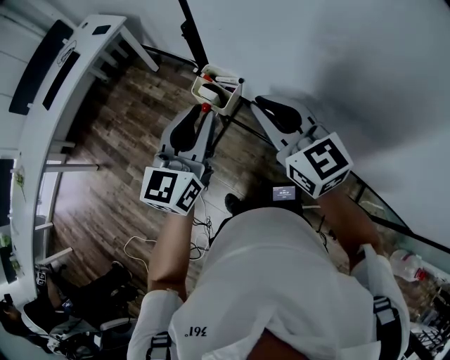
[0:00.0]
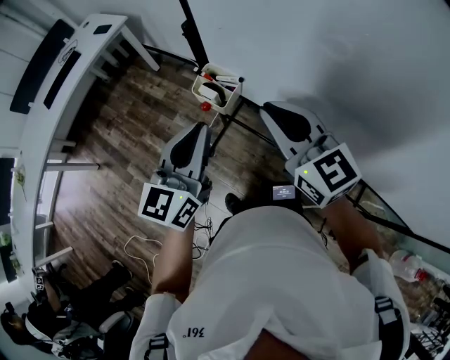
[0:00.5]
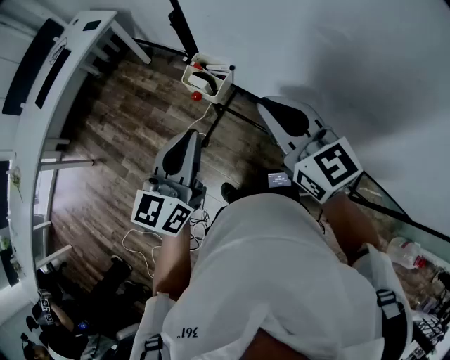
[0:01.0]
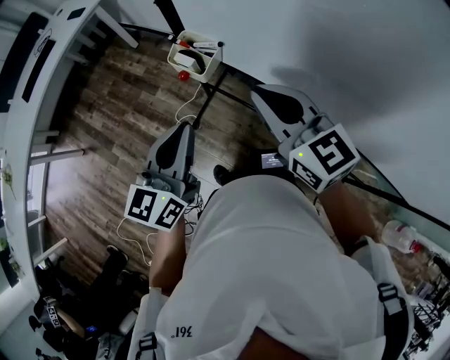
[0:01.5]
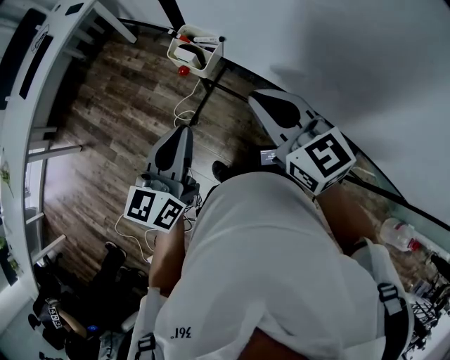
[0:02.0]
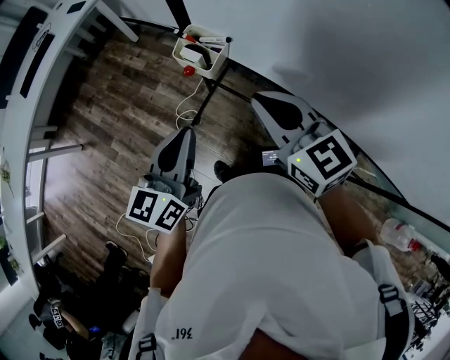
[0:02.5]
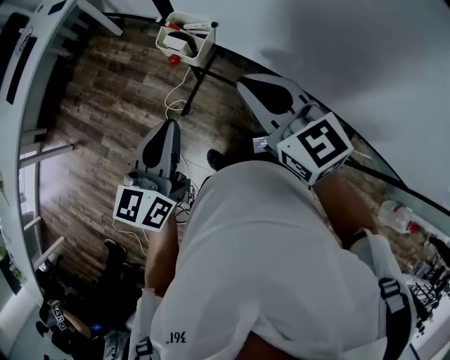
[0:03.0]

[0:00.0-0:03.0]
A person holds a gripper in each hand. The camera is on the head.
0:00.0 to 0:01.5: The right gripper ends up about 5 cm from where it was. Meanwhile the left gripper goes about 10 cm backward.
0:01.5 to 0:03.0: The grippers stay close to where they were, moving slightly.

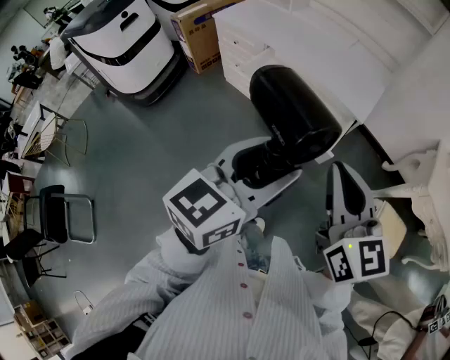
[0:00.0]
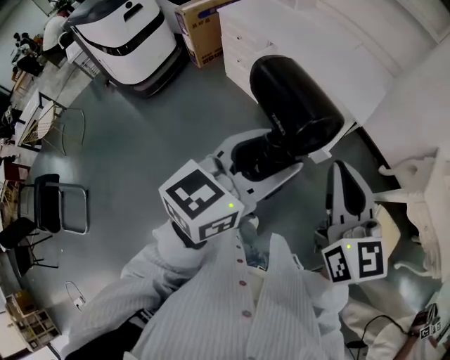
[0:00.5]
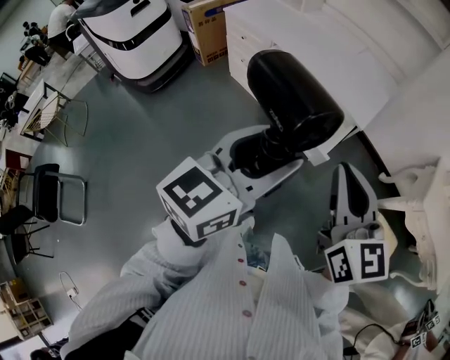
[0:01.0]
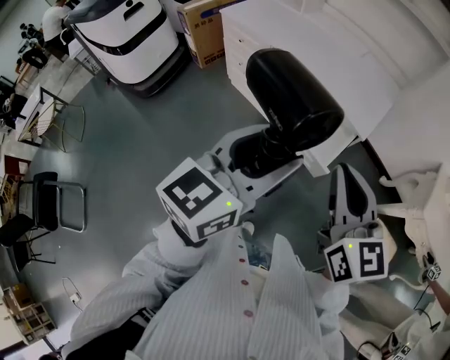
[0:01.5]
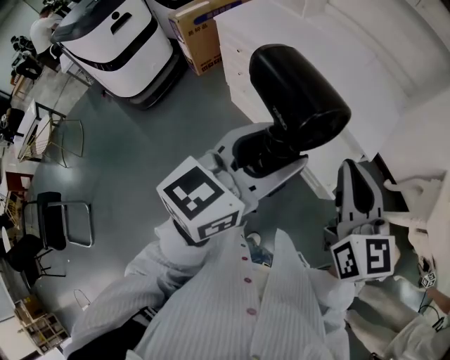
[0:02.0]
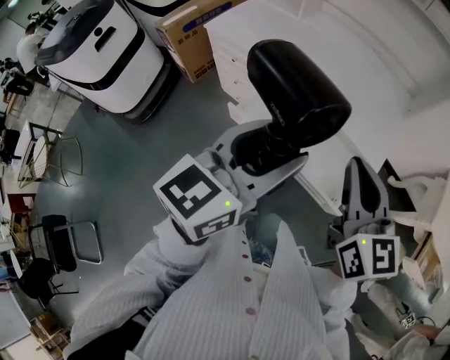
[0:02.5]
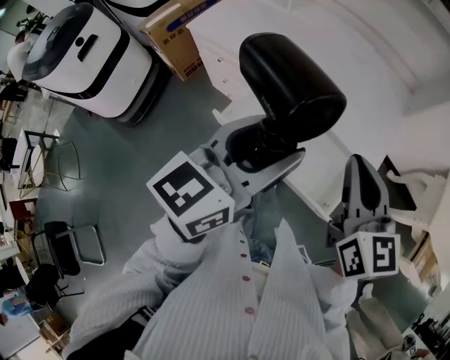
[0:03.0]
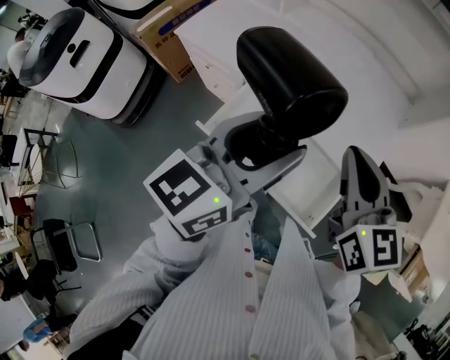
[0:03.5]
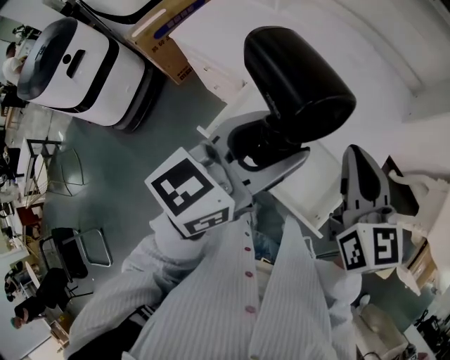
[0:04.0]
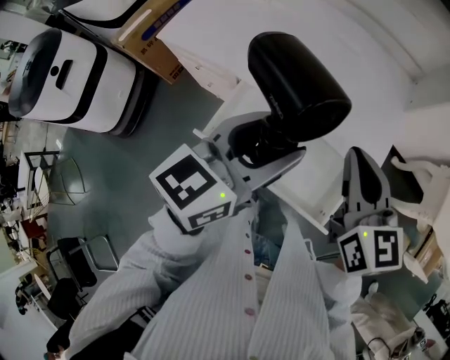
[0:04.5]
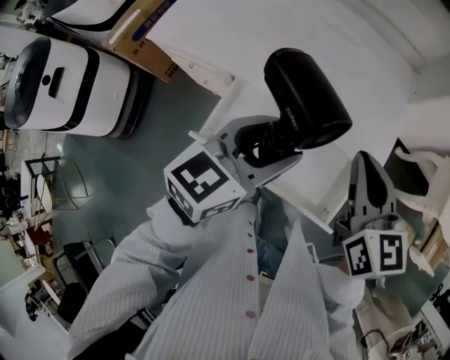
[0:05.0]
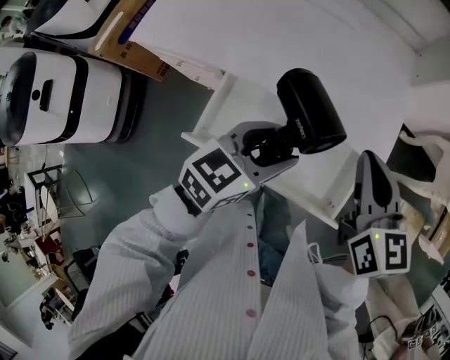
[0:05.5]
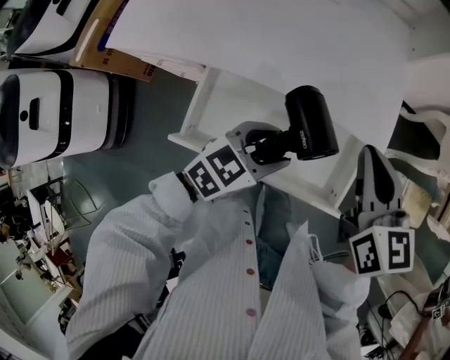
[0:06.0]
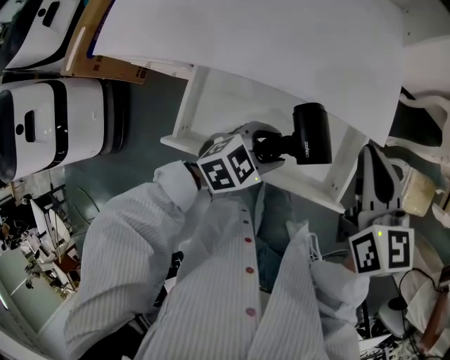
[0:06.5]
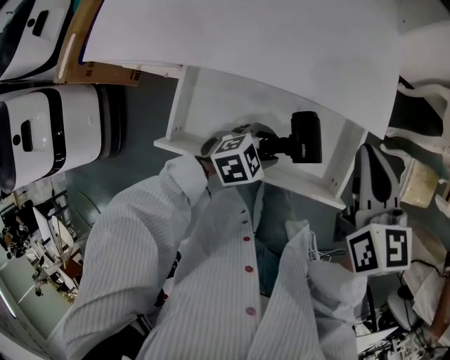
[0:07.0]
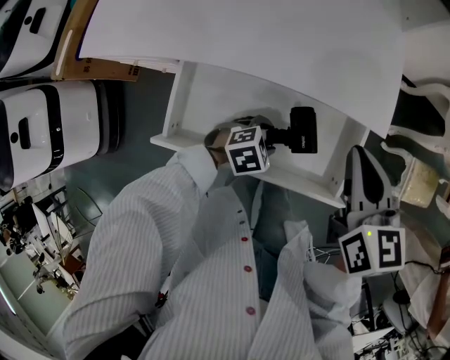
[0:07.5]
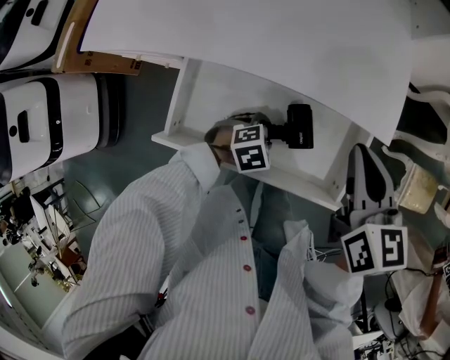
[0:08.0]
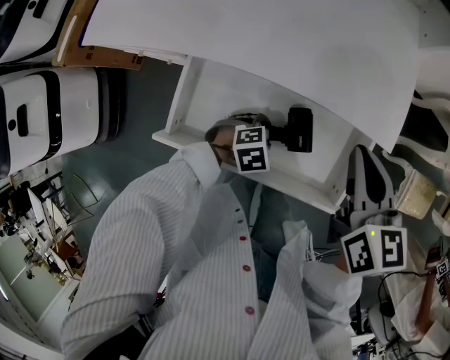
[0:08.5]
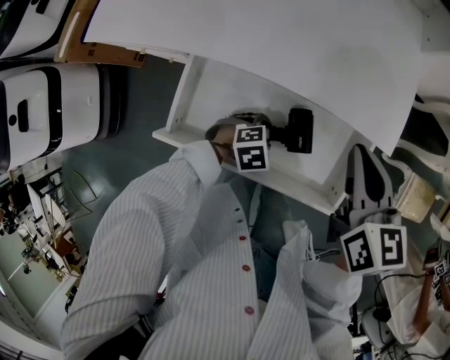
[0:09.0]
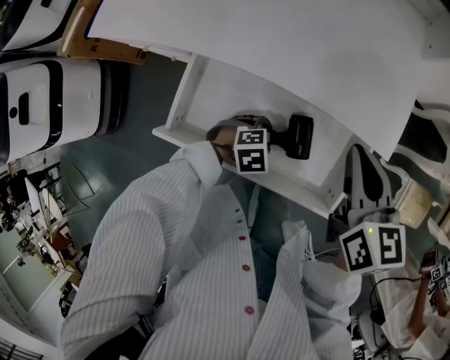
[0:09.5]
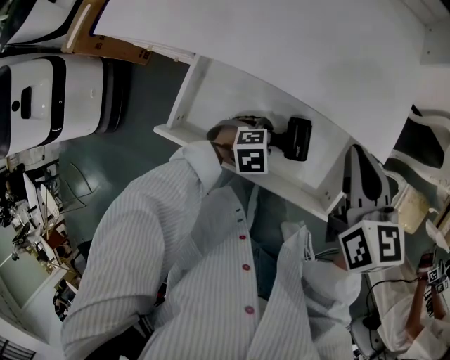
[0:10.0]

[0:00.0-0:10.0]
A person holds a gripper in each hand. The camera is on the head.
0:00.0 to 0:02.0: Both grippers travel together forward, approximately 20 cm.
0:02.0 to 0:04.0: Both grippers move forward, about 25 cm.
0:04.0 to 0:06.0: The left gripper heads downward, covering roughly 25 cm, and changes its angle by some 50 degrees. The right gripper is displaced downward by about 10 cm, and changes its angle by some 20 degrees.
0:06.0 to 0:08.0: The left gripper shifts some 20 cm downward, and tips its fingers downward by about 40 degrees. Meanwhile the right gripper moves downward, roughly 5 cm.
0:08.0 to 0:10.0: There are only small adjustments of the grippers.

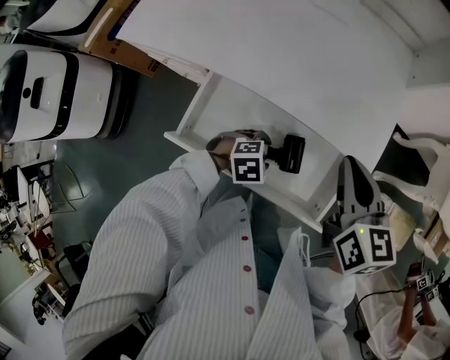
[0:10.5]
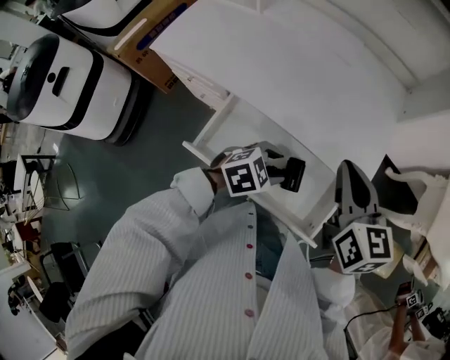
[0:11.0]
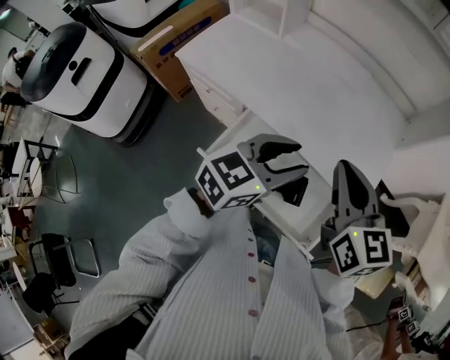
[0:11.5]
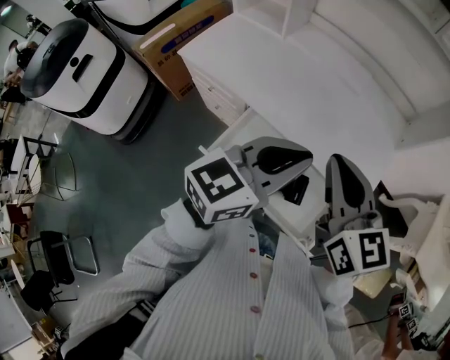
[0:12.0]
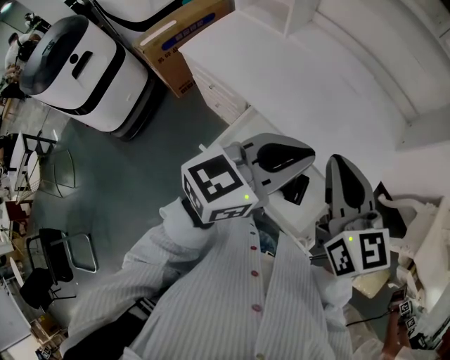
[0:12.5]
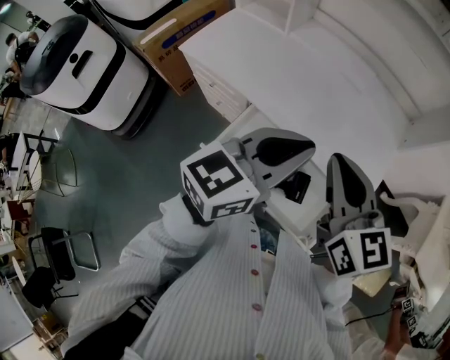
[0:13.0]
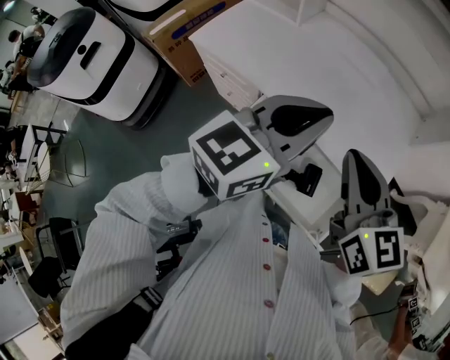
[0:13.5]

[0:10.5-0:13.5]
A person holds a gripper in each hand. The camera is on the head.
0:10.5 to 0:12.0: The left gripper heads upward, covering about 40 cm, tips its fingers upward by roughly 60 degrees, and closes its fingers. The right gripper goes about 15 cm upward, and swivels about 30 degrees.
0:12.0 to 0:13.5: The left gripper ends up roughly 5 cm from where it was.

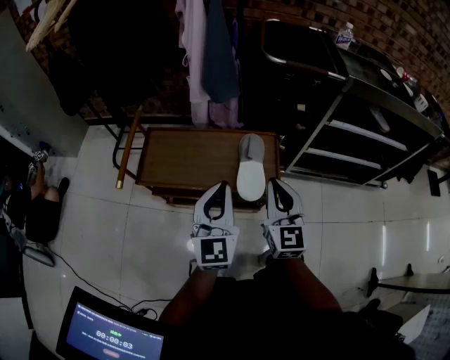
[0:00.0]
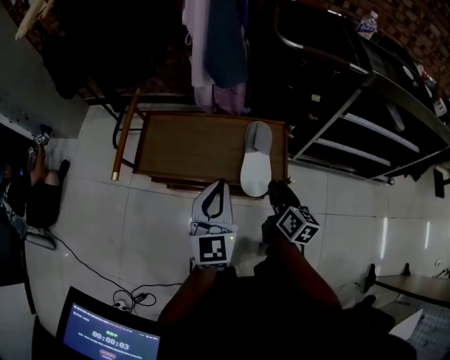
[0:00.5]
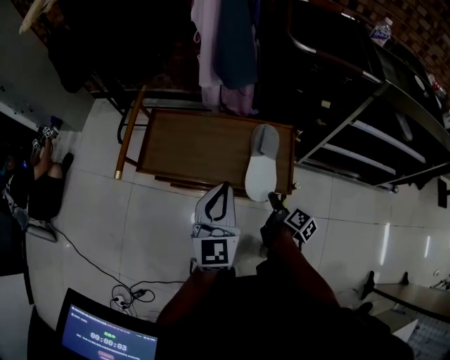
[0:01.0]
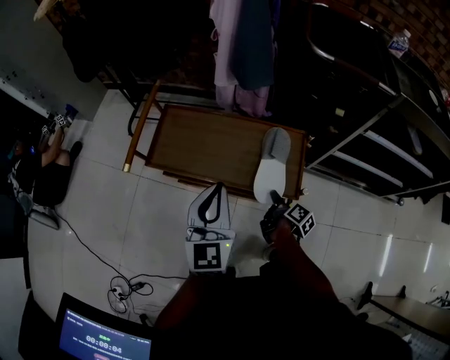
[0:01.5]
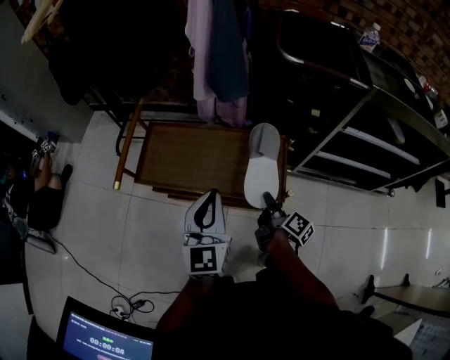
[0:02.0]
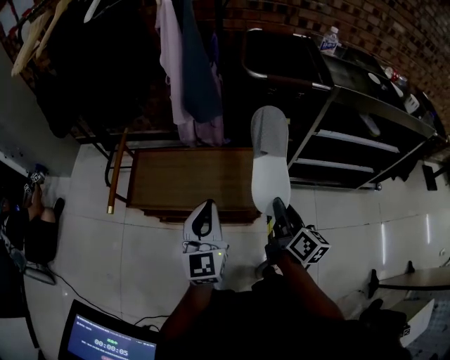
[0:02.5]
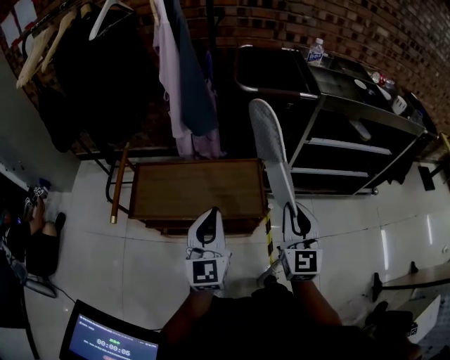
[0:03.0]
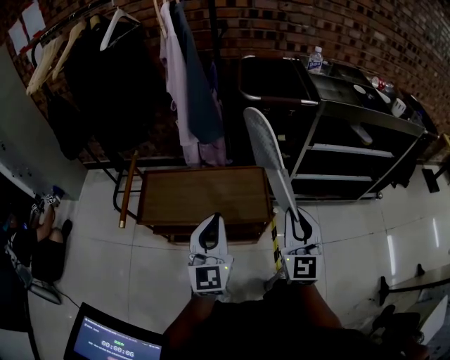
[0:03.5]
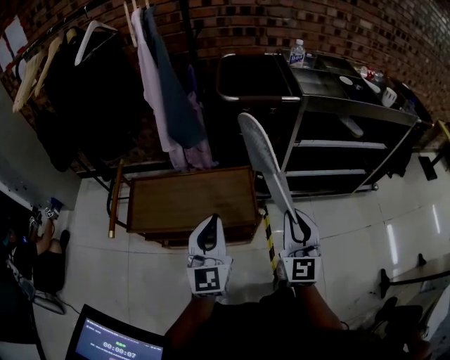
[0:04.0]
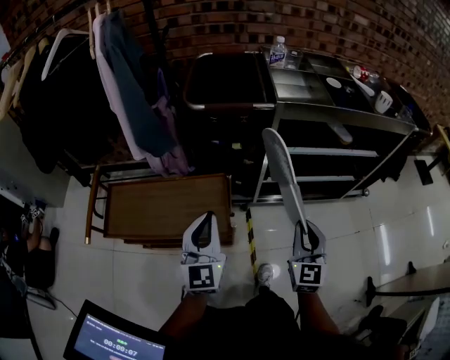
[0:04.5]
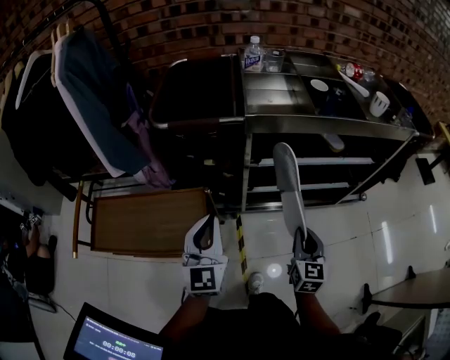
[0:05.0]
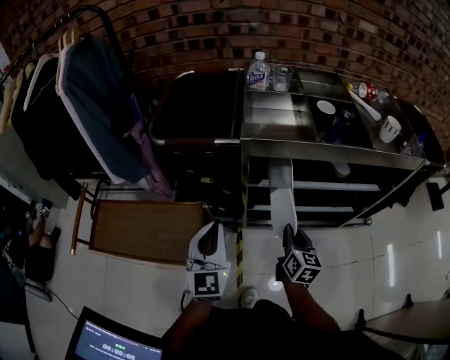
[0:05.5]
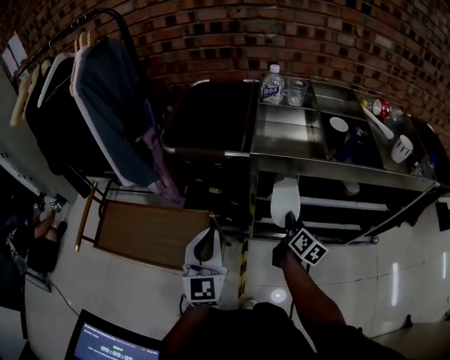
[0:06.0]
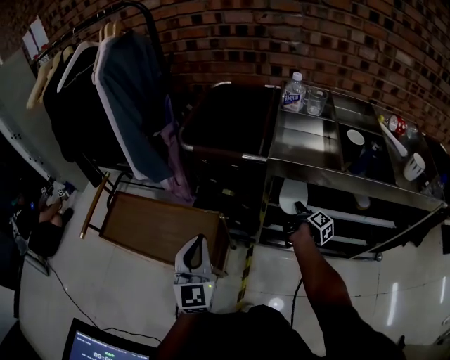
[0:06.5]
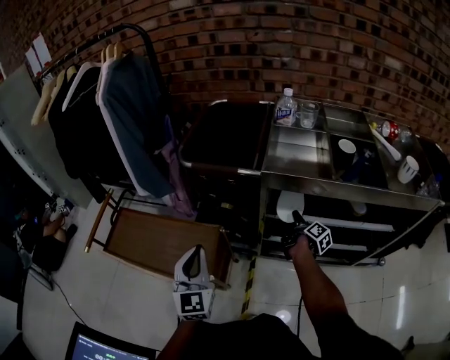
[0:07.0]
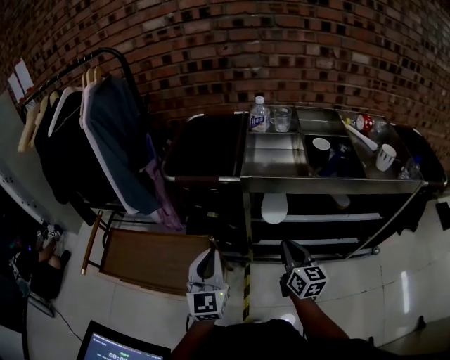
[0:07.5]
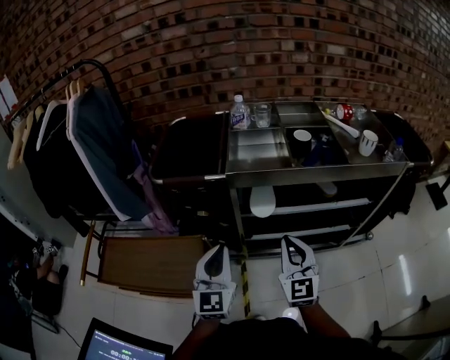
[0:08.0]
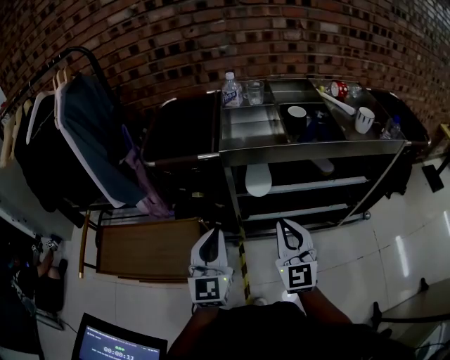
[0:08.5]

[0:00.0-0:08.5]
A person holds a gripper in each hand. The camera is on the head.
0:00.0 to 0:02.0: The left gripper shifts by approximately 5 cm. The right gripper travels downward by approximately 20 cm, twists approximately 80 degrees clockwise, seen from behind, and opens, then closes once more.
0:02.0 to 0:04.0: The right gripper moves upward and to the right, roughly 25 cm, and twists approximately 90 degrees counterclockwise, seen from behind, while the left gripper travels to the right and upward by roughly 10 cm.
0:04.0 to 0:06.5: The left gripper heads to the right and forward, covering roughly 25 cm. The right gripper heads forward, to the right and downward, covering approximately 50 cm, and twists some 100 degrees clockwise, seen from behind.
0:06.5 to 0:08.5: The left gripper heads to the right, covering approximately 10 cm, and swivels some 20 degrees. The right gripper travels upward and backward by some 35 cm, rotates around the line of its fingers by approximately 100 degrees, counterclockwise from behind, and opens, then closes again.

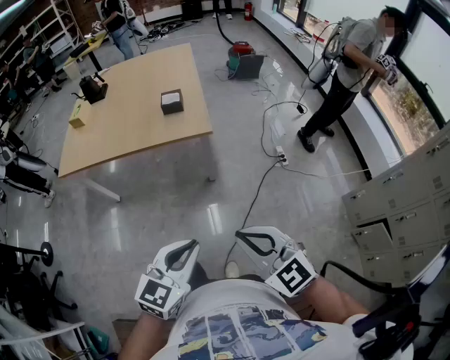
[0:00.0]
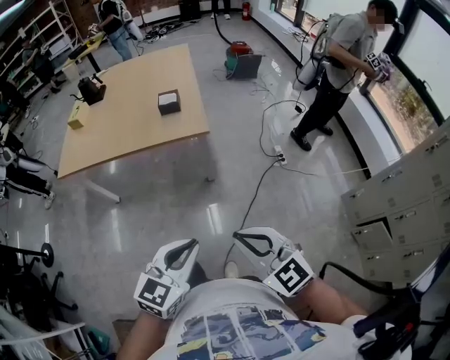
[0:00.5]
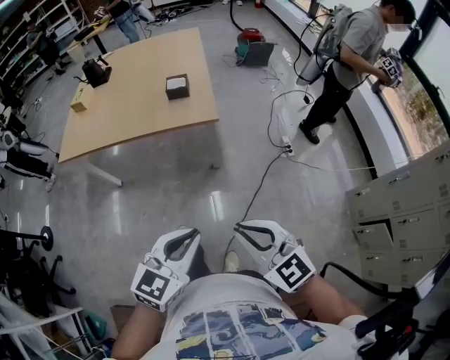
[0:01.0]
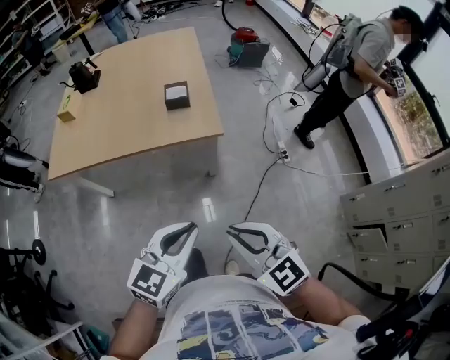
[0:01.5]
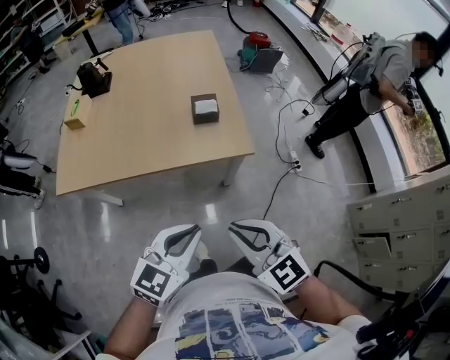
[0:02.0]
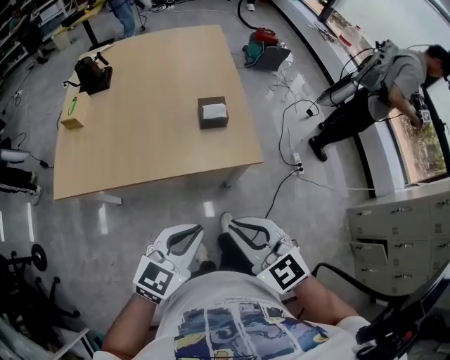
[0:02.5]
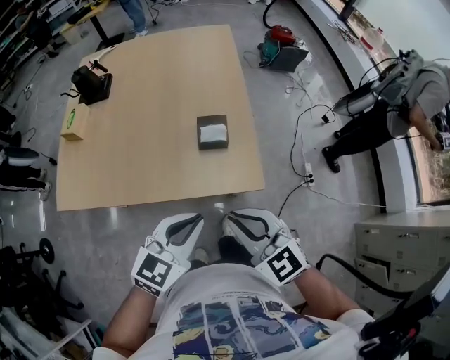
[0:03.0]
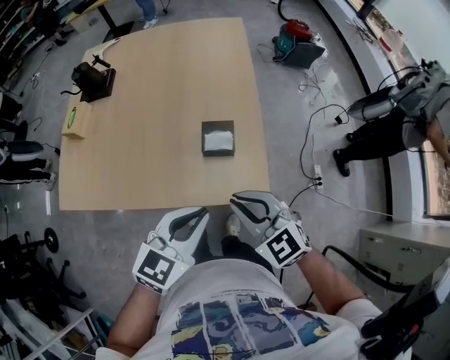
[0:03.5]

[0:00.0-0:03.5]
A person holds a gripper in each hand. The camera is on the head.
0:00.0 to 0:02.0: Both grippers move forward and to the left, roughly 30 cm.
0:02.0 to 0:03.5: Both grippers move forward, roughly 30 cm.
